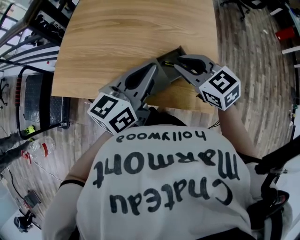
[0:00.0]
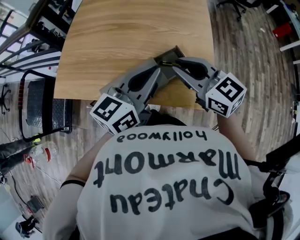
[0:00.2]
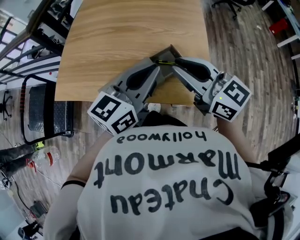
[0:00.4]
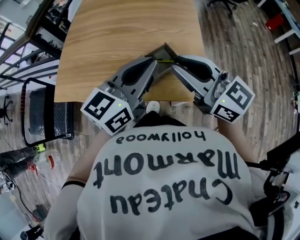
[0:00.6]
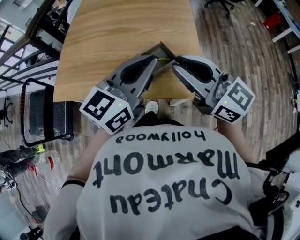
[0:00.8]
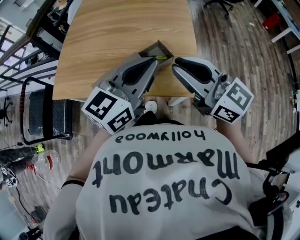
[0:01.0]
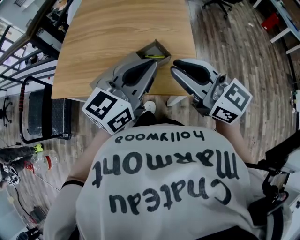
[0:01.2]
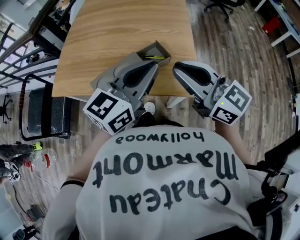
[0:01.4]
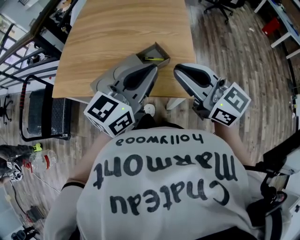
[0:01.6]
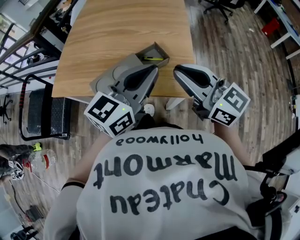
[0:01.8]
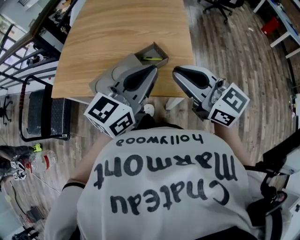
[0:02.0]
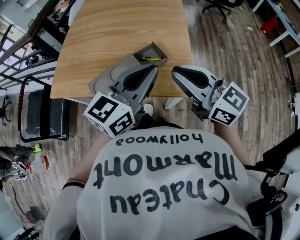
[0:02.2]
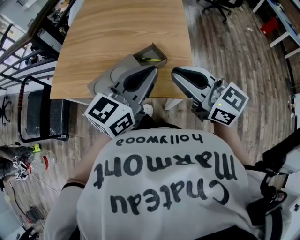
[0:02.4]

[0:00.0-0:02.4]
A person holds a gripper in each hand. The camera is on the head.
0:00.0 to 0:01.2: The left gripper goes about 15 cm backward, upward and to the right, and rotates about 20 degrees. Meanwhile the right gripper moves backward and upward, roughly 20 cm, and swivels about 30 degrees.
0:01.2 to 0:02.4: The grippers stay close to where they were, moving slightly.

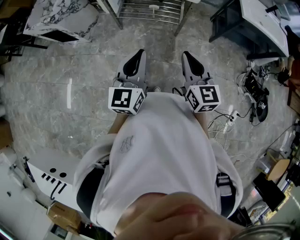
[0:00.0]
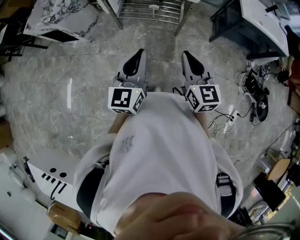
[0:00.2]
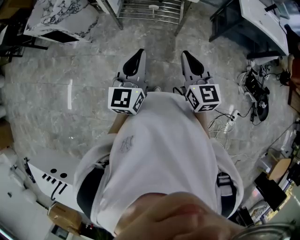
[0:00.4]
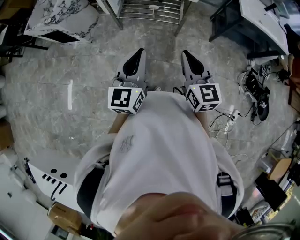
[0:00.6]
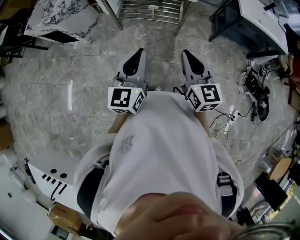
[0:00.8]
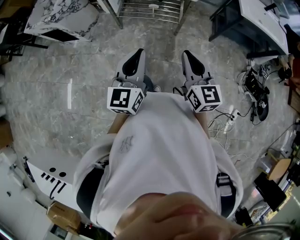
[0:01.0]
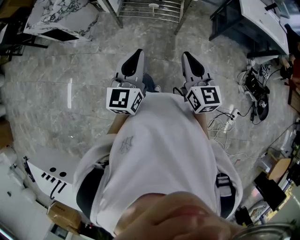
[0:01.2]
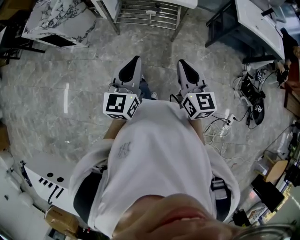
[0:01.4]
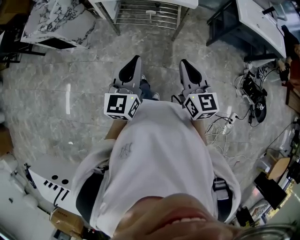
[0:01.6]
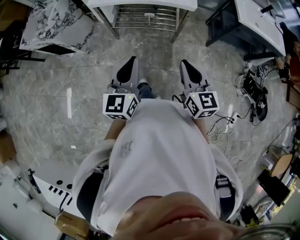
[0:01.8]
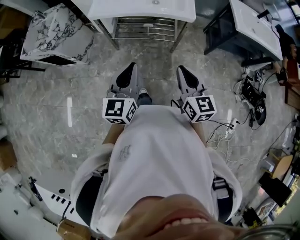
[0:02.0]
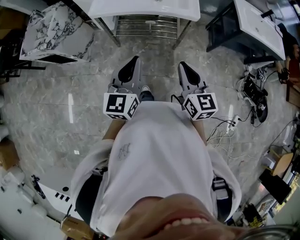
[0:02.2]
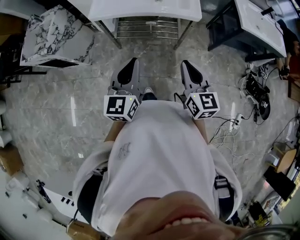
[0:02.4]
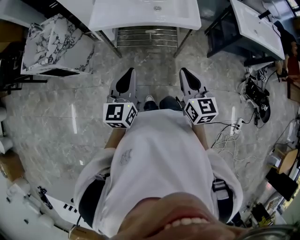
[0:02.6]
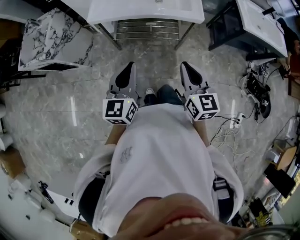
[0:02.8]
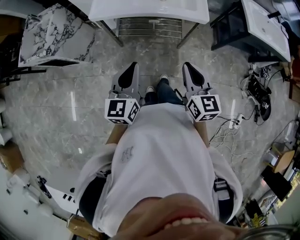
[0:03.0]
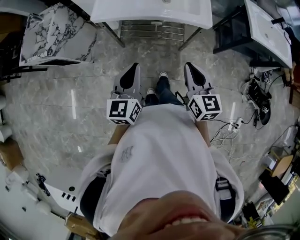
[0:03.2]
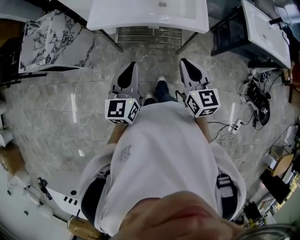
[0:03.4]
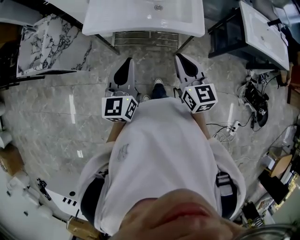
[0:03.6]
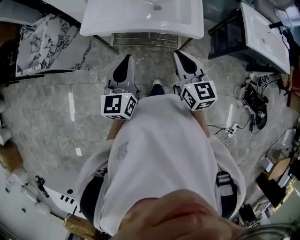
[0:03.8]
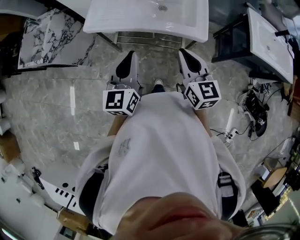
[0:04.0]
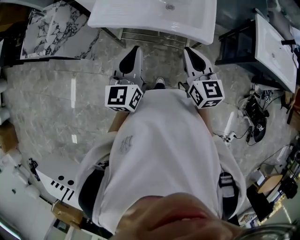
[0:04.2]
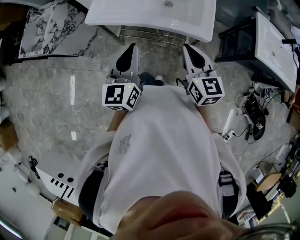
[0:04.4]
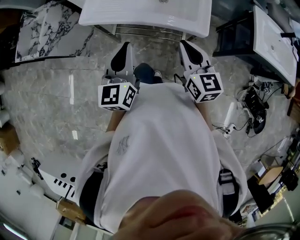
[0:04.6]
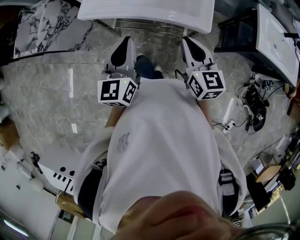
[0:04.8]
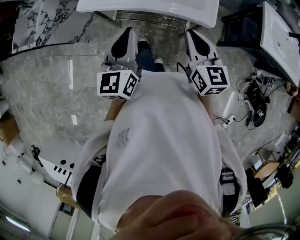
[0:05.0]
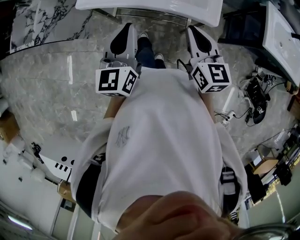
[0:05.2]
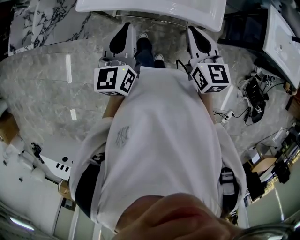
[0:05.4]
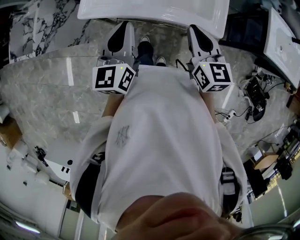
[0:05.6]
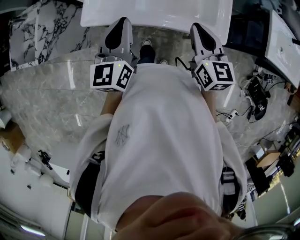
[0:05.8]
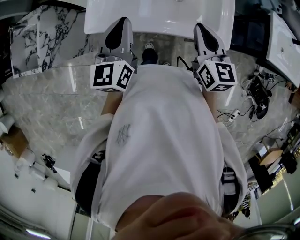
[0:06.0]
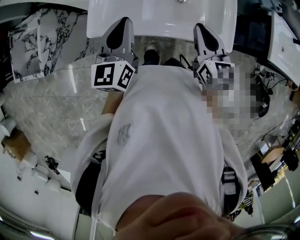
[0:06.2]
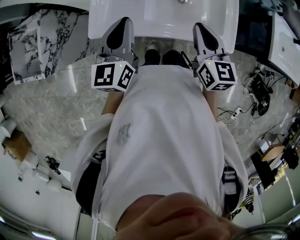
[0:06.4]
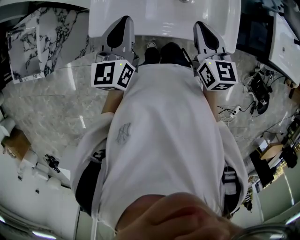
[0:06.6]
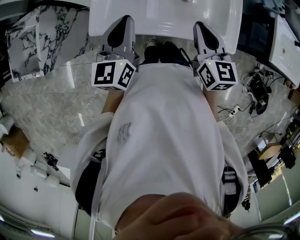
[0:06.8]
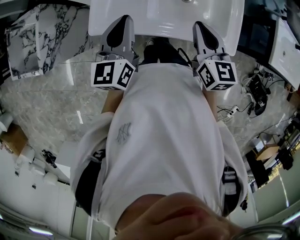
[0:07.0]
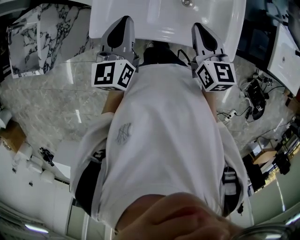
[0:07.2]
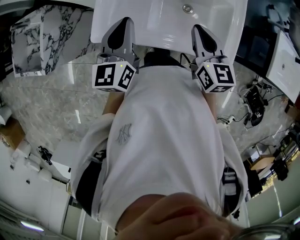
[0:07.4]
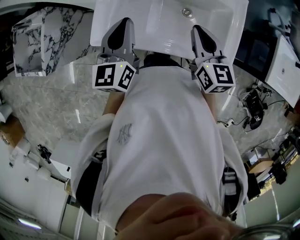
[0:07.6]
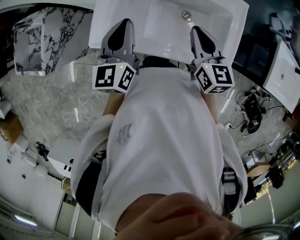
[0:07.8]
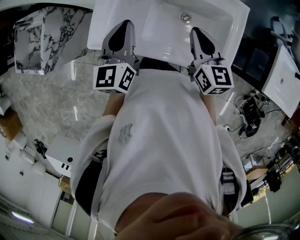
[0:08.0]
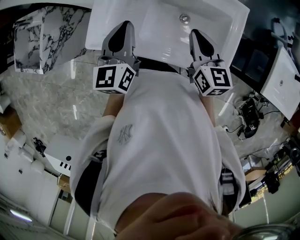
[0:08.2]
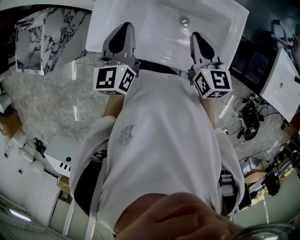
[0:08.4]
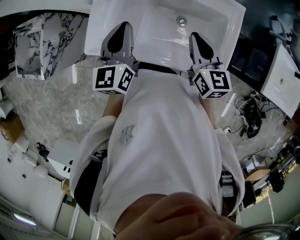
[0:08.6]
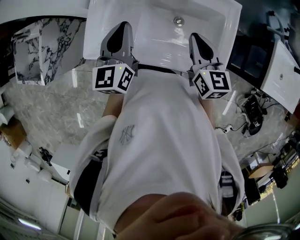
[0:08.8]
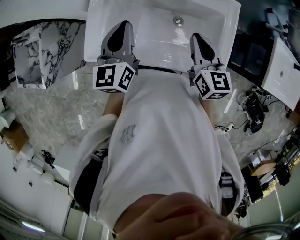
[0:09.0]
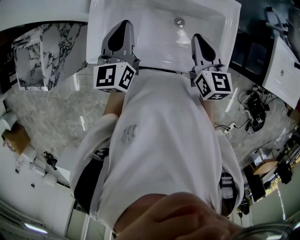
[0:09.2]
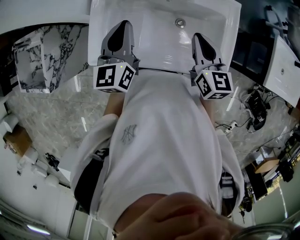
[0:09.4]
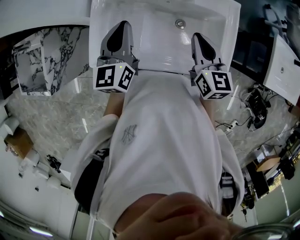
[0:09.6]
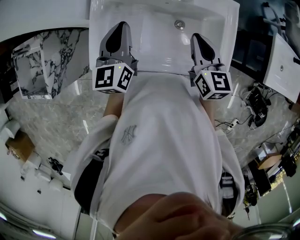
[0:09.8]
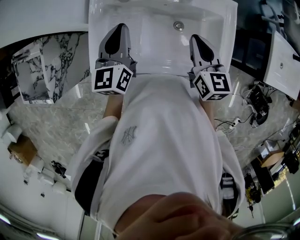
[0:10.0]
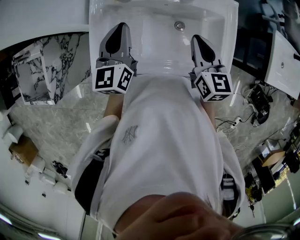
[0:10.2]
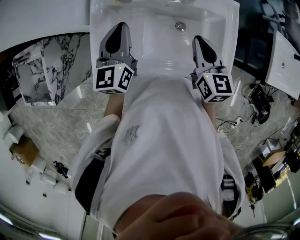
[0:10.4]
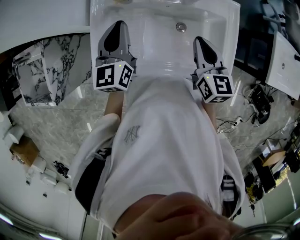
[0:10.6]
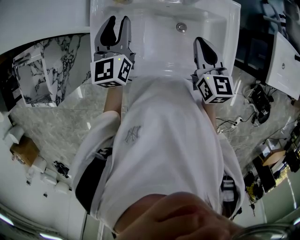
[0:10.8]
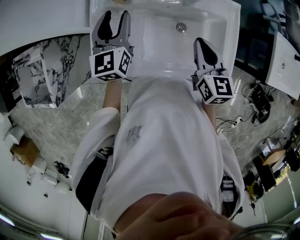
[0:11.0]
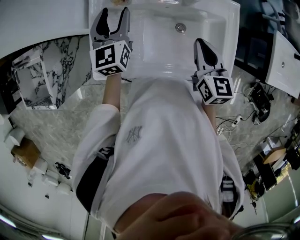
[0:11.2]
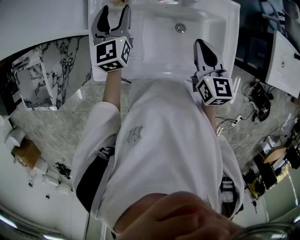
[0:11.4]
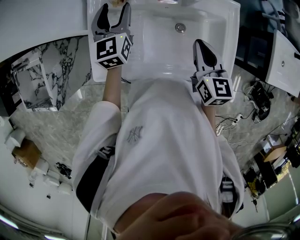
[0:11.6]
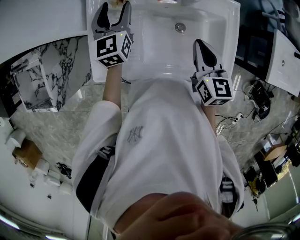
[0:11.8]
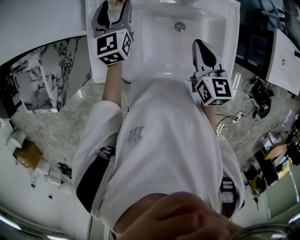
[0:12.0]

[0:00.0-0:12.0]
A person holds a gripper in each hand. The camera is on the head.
0:00.0 to 0:01.6: The grippers stay close to where they were, moving slightly.
0:01.6 to 0:03.0: The left gripper heads forward and to the left, covering approximately 20 cm; the right gripper moves forward, about 15 cm.
0:03.0 to 0:04.4: The right gripper goes approximately 20 cm forward, while the left gripper goes about 15 cm forward and to the right.
0:04.4 to 0:06.0: The grippers both shift forward by about 20 cm.
0:06.0 to 0:07.6: Both grippers travel together forward, roughly 10 cm.
0:07.6 to 0:09.0: The grippers both shift to the right by some 5 cm.
0:09.0 to 0:10.4: The left gripper shifts some 5 cm forward.
0:10.4 to 0:12.0: The left gripper moves forward, roughly 10 cm, and opens its fingers.

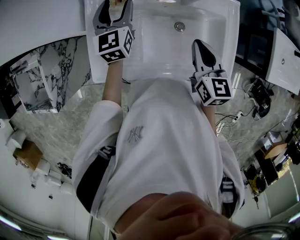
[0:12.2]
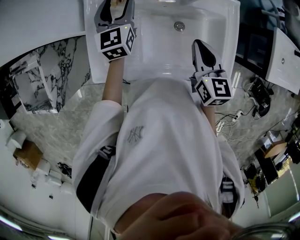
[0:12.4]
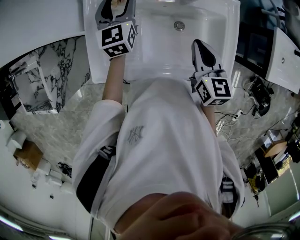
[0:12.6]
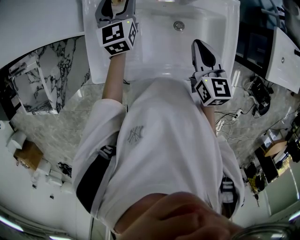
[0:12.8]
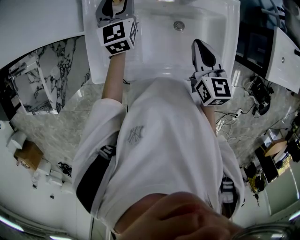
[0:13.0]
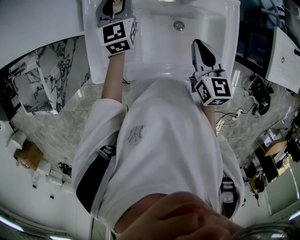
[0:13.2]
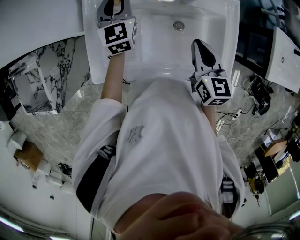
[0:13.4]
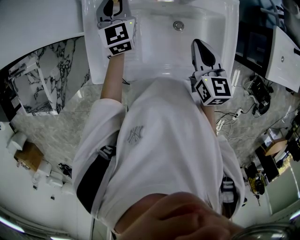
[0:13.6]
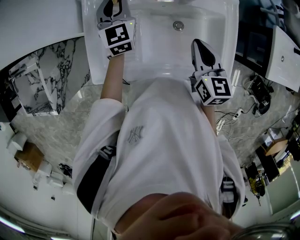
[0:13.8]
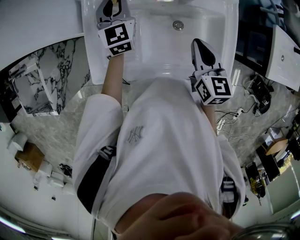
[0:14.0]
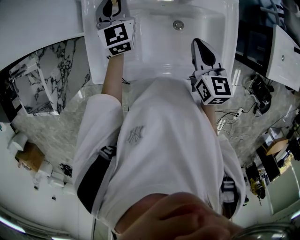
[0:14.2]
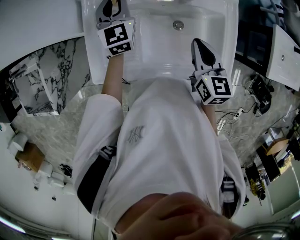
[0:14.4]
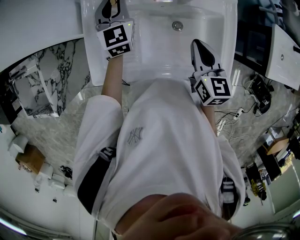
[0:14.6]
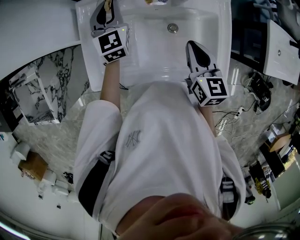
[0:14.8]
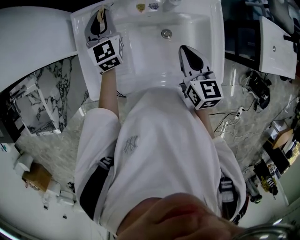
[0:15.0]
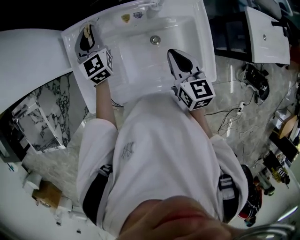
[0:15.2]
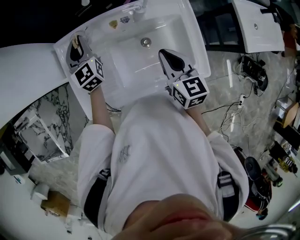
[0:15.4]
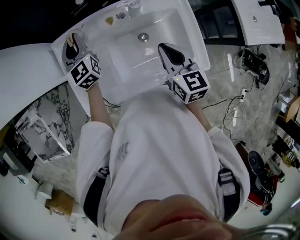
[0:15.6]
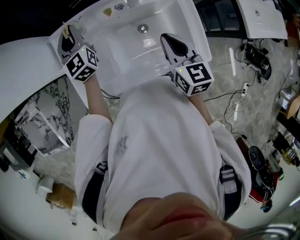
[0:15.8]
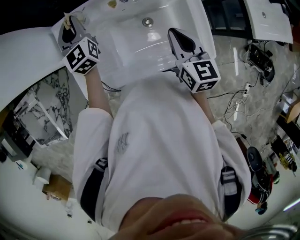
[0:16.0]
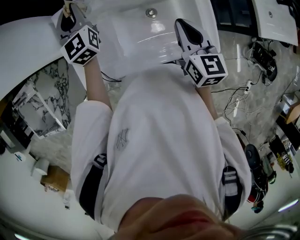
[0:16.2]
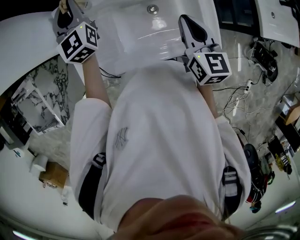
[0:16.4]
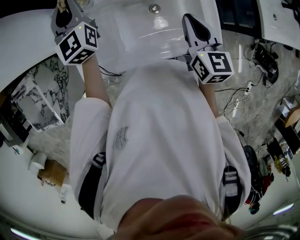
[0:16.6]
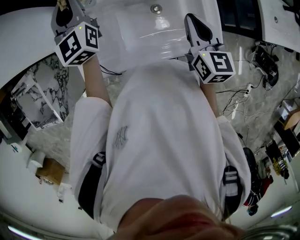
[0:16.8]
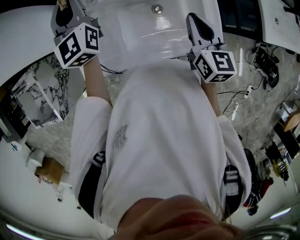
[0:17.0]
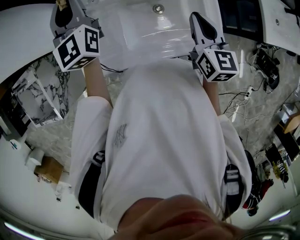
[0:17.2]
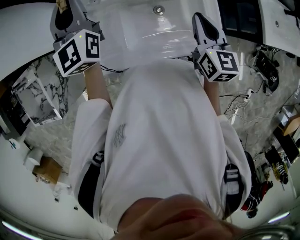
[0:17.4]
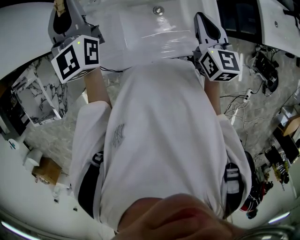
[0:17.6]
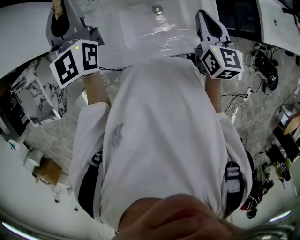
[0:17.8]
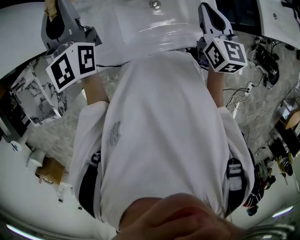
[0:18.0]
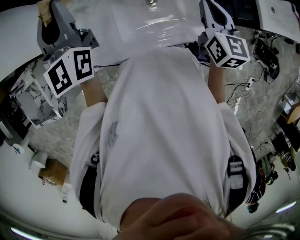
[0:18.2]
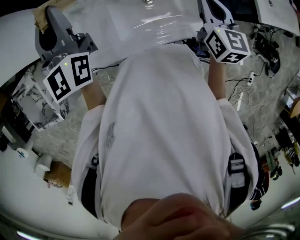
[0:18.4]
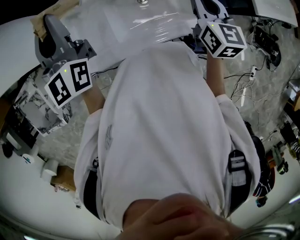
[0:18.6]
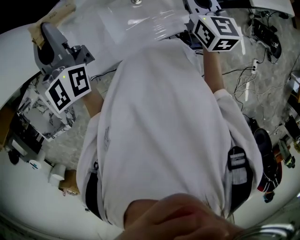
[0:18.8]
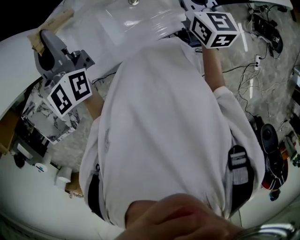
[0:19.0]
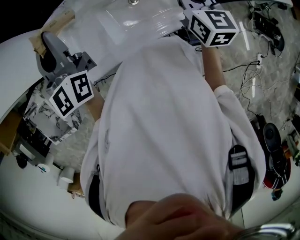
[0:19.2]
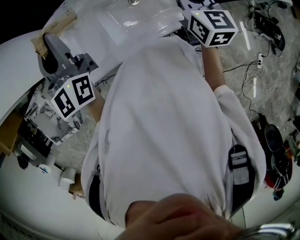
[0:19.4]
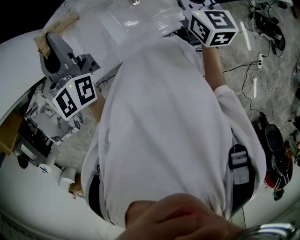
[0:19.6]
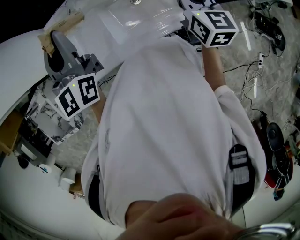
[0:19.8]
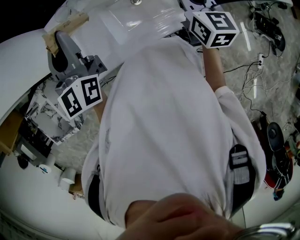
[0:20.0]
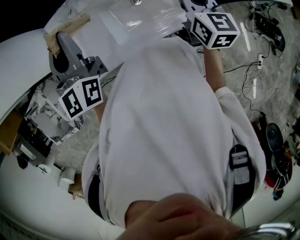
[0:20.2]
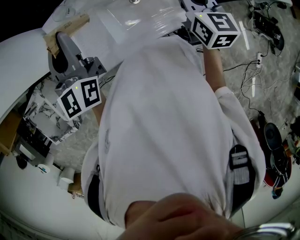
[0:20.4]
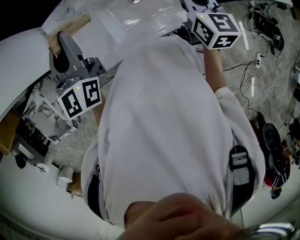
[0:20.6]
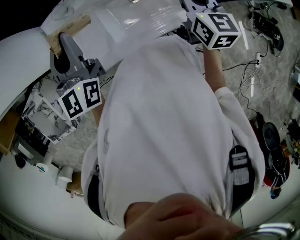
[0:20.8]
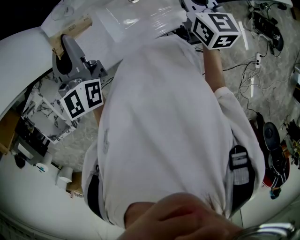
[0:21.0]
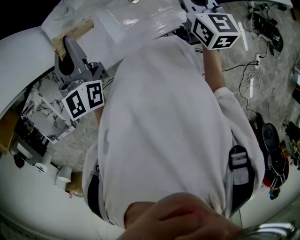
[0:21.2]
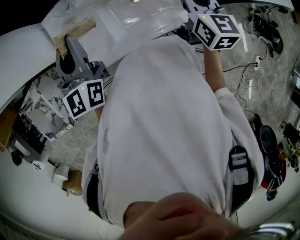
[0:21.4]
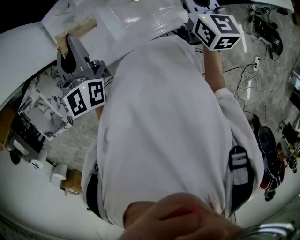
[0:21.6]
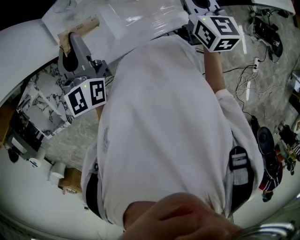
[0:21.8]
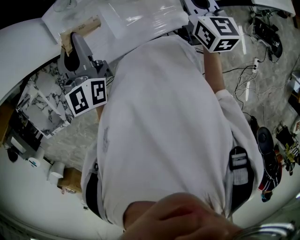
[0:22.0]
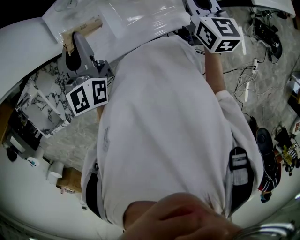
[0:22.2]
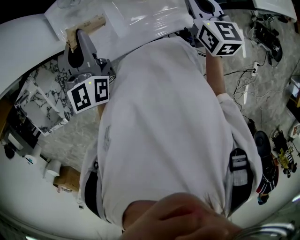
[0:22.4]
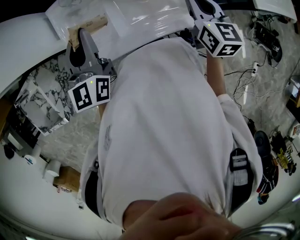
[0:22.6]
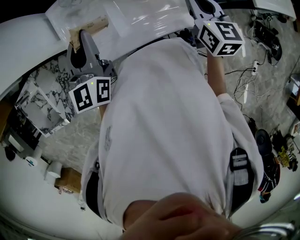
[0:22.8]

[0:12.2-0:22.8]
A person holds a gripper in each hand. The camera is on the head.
0:12.2 to 0:13.8: The left gripper closes up.
0:13.8 to 0:15.2: Both grippers stay put.
0:15.2 to 0:16.8: The left gripper moves upward, about 10 cm. The right gripper shifts roughly 5 cm to the right.
0:16.8 to 0:18.2: The left gripper goes about 15 cm backward and upward, while the right gripper goes roughly 5 cm to the right.
0:18.2 to 0:19.8: The left gripper is displaced backward by some 5 cm.
0:19.8 to 0:21.2: The grippers make only small movements.
0:21.2 to 0:22.8: There are only small adjustments of the grippers.
